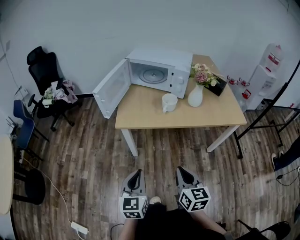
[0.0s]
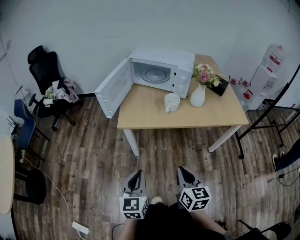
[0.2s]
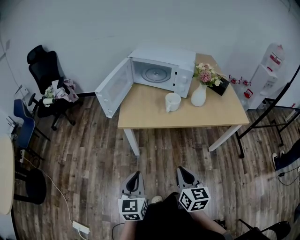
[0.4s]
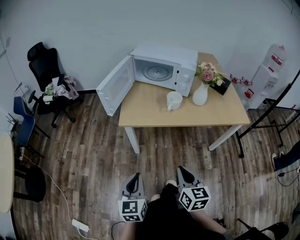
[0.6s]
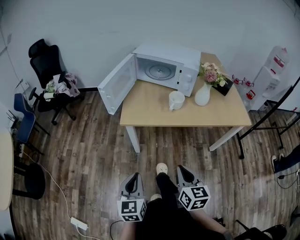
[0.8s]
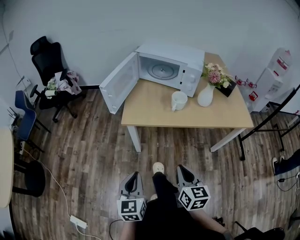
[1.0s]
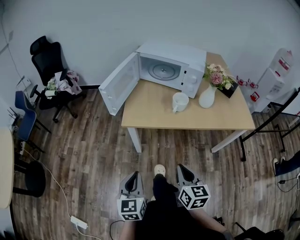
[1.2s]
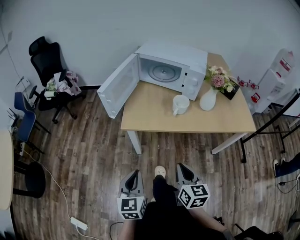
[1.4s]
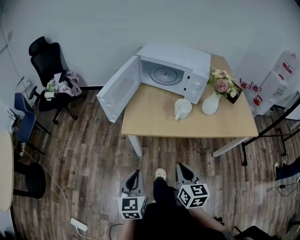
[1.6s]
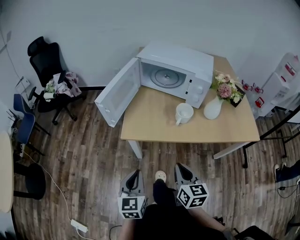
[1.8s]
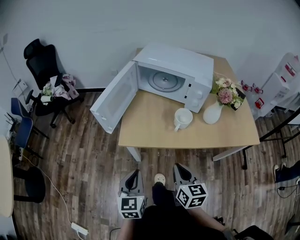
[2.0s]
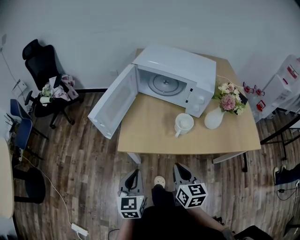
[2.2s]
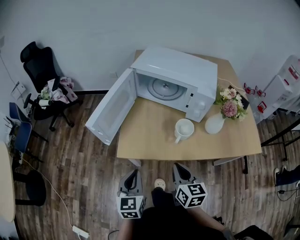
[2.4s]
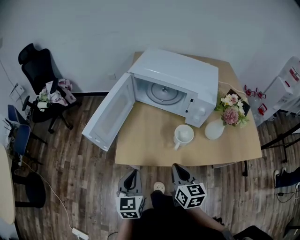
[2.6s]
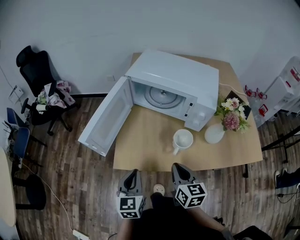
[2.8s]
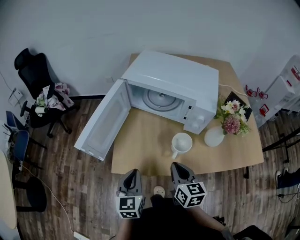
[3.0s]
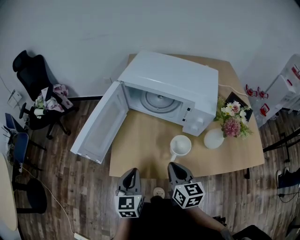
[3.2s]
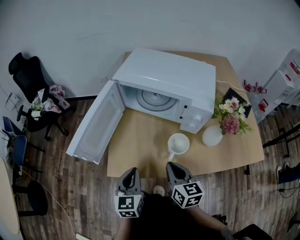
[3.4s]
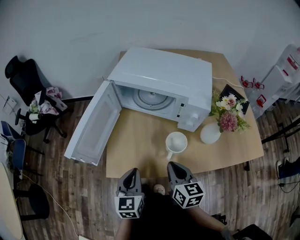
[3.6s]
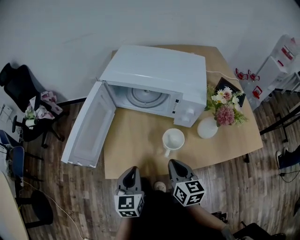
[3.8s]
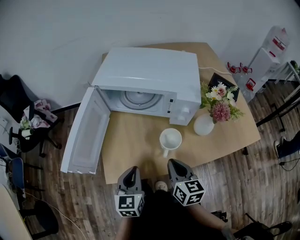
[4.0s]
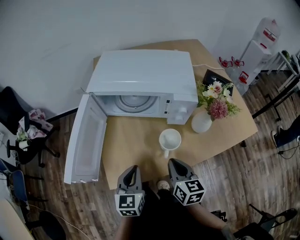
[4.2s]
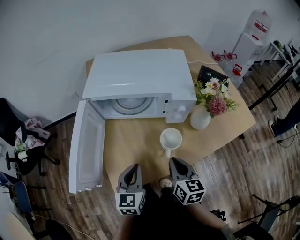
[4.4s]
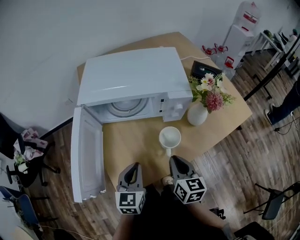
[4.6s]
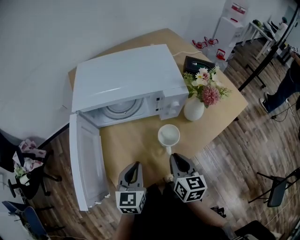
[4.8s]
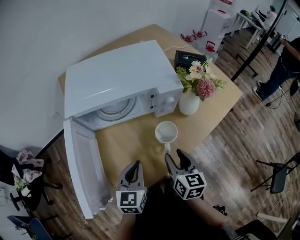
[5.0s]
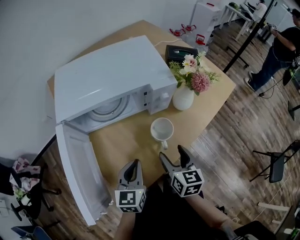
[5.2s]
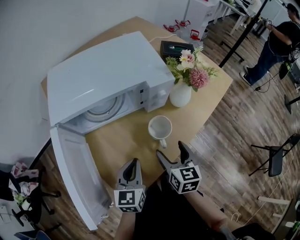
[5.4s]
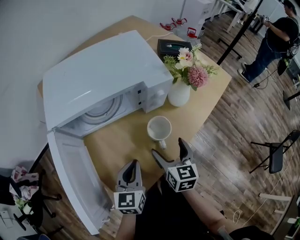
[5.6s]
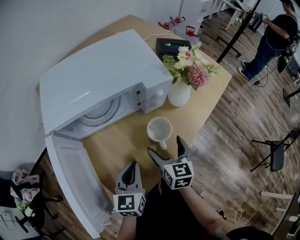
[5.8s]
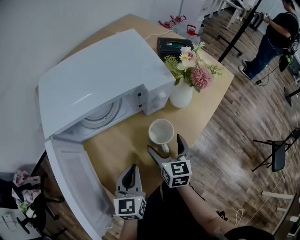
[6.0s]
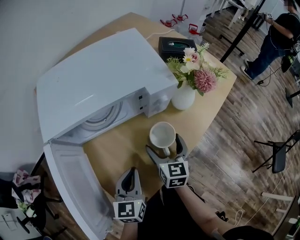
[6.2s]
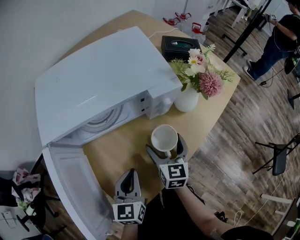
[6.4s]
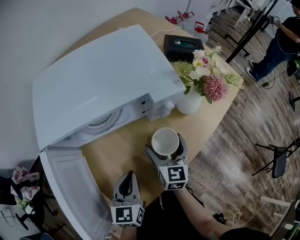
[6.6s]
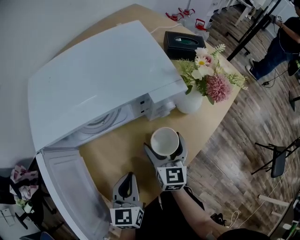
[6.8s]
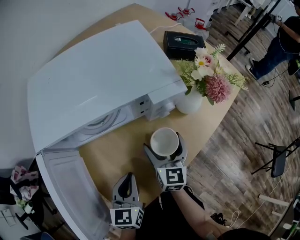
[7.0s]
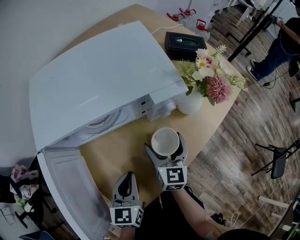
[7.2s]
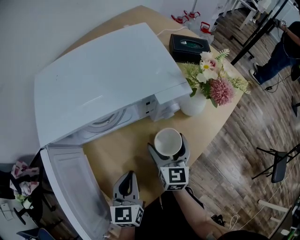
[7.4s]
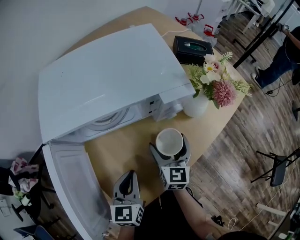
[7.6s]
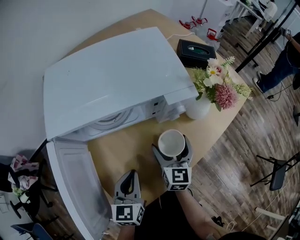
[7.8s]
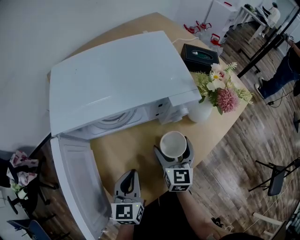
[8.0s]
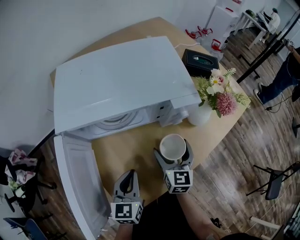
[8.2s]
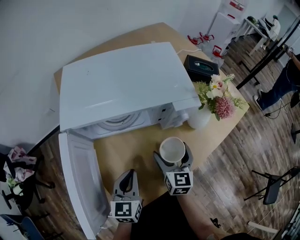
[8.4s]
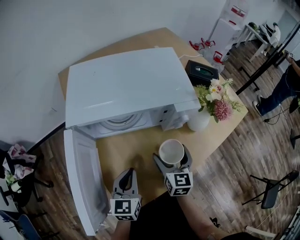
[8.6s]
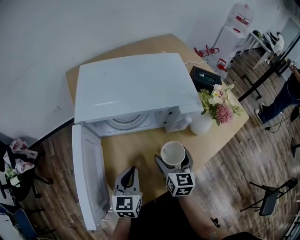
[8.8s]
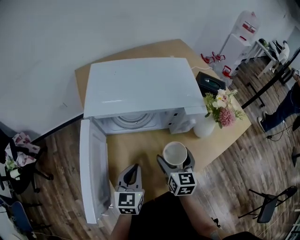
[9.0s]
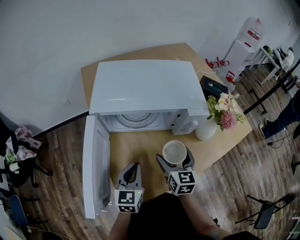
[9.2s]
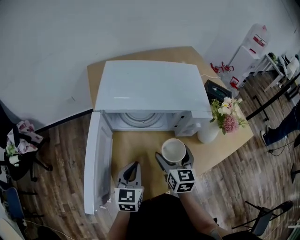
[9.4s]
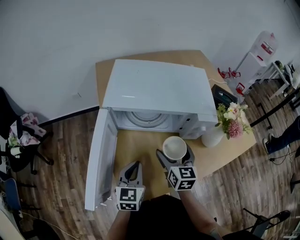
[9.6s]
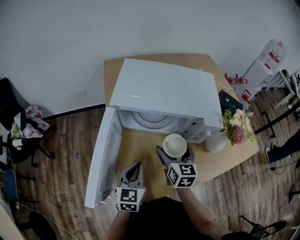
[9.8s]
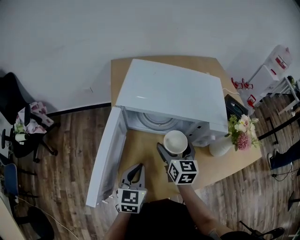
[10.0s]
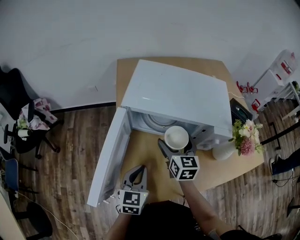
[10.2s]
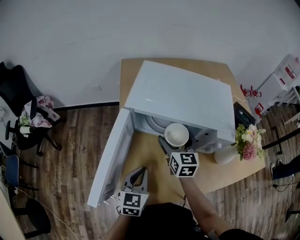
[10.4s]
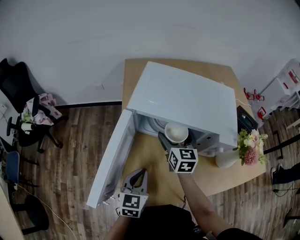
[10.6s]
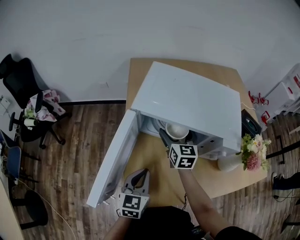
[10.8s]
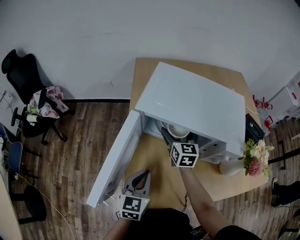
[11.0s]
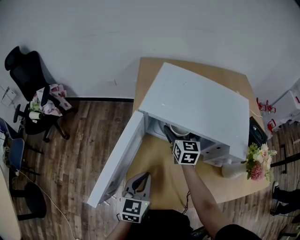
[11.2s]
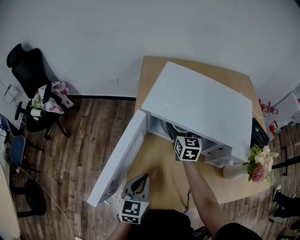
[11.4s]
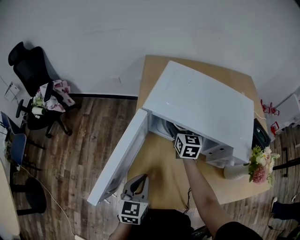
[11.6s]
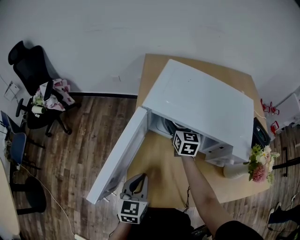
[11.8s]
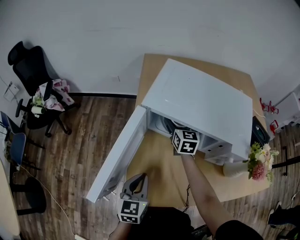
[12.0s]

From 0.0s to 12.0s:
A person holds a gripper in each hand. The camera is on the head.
From 0.0s to 1.6s: The grippers both shift forward by some 10 cm.
From 1.6s to 3.0s: Both grippers move forward, some 25 cm.
From 3.0s to 4.4s: The right gripper changes its angle by about 20 degrees. The left gripper shifts approximately 10 cm forward, and swivels approximately 30 degrees.
From 4.4s to 6.0s: The right gripper changes place by some 10 cm, changes its angle by about 30 degrees, and opens up; the left gripper moves about 5 cm, and turns by approximately 20 degrees.
From 6.0s to 7.6s: The right gripper goes roughly 5 cm forward.
From 7.6s to 9.0s: The right gripper travels upward by about 5 cm. Meanwhile the left gripper moves roughly 5 cm.
From 9.0s to 10.4s: The right gripper moves forward and to the left, about 15 cm, and turns by some 20 degrees.
From 10.4s to 12.0s: The right gripper is displaced forward by some 10 cm.

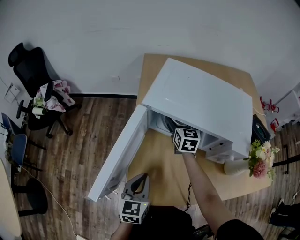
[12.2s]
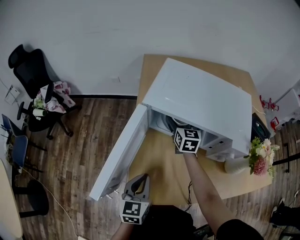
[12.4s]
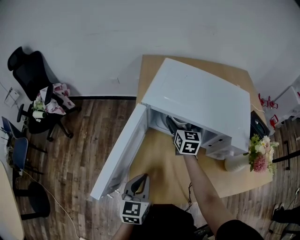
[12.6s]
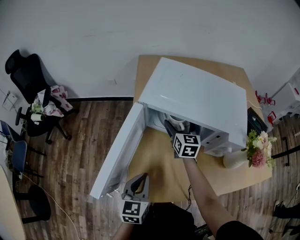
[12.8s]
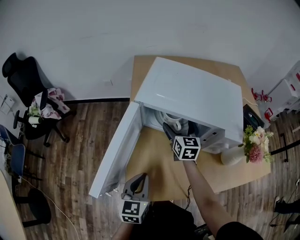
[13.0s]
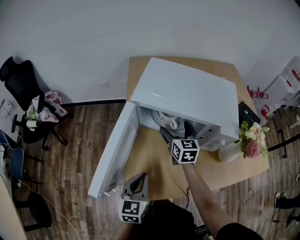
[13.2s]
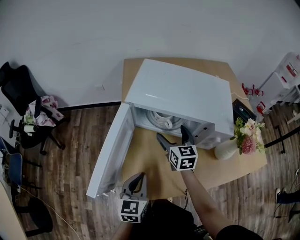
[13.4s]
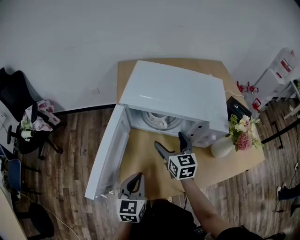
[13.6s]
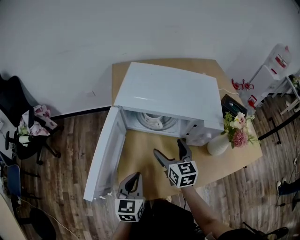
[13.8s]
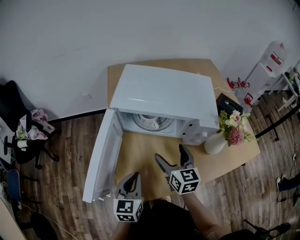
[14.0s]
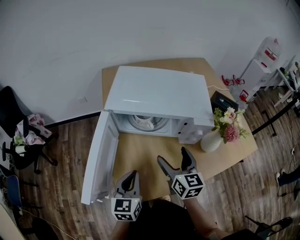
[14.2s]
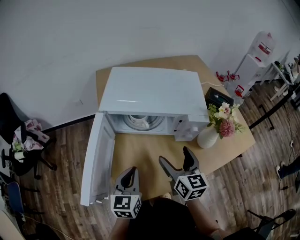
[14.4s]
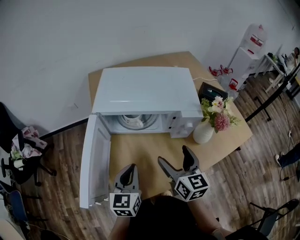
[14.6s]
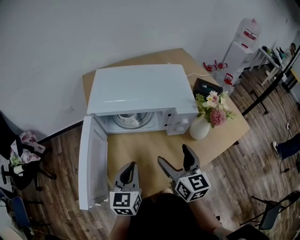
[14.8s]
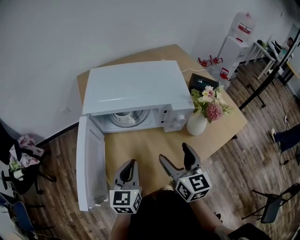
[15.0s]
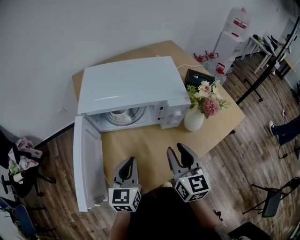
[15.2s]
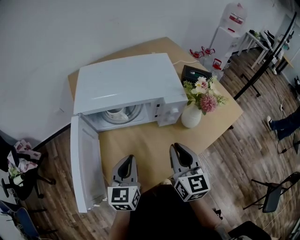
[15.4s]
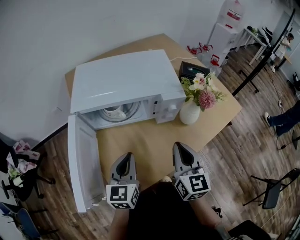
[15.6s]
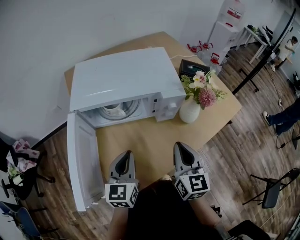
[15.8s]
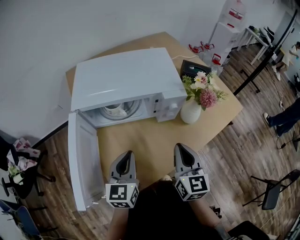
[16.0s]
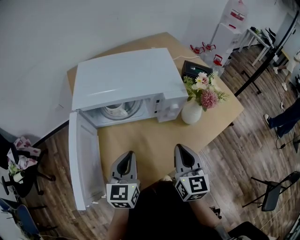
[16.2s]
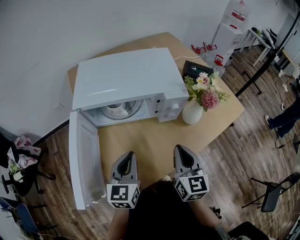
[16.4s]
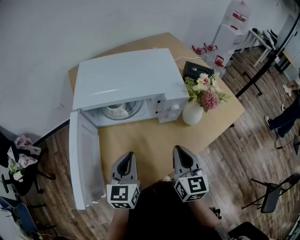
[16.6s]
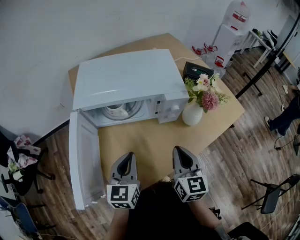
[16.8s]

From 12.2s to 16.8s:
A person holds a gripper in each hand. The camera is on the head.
From 12.2s to 13.8s: The right gripper shifts approximately 20 cm backward.
From 13.8s to 15.2s: The right gripper moves to the right, backward and upward, approximately 15 cm, changes its angle by about 20 degrees, and closes up, while the left gripper heads to the right, covering about 5 cm.
From 15.2s to 16.8s: The grippers move only a little.

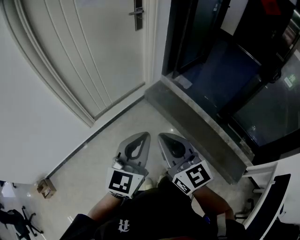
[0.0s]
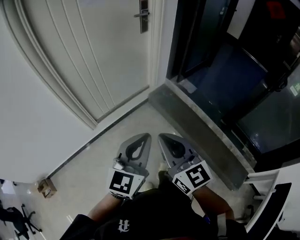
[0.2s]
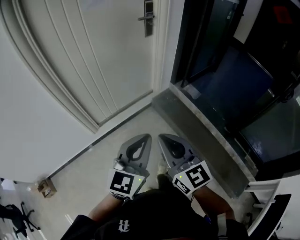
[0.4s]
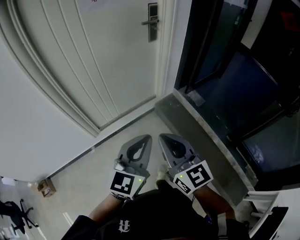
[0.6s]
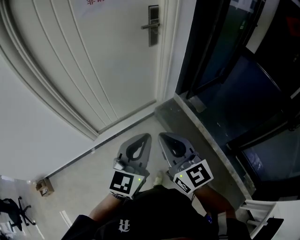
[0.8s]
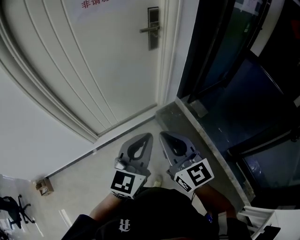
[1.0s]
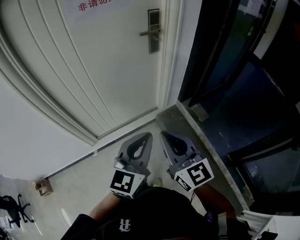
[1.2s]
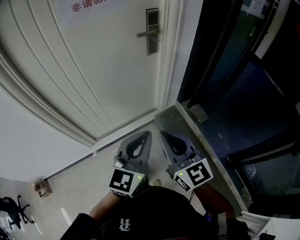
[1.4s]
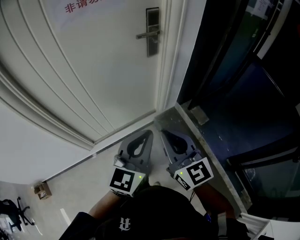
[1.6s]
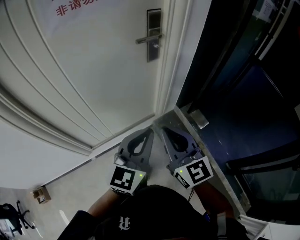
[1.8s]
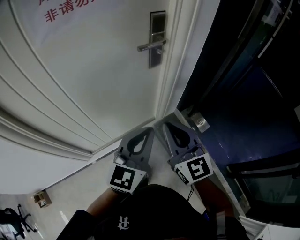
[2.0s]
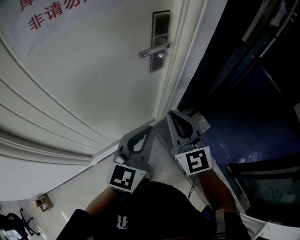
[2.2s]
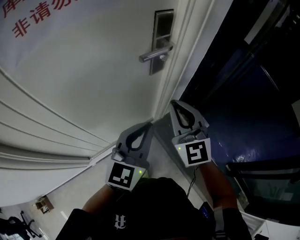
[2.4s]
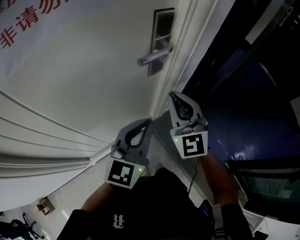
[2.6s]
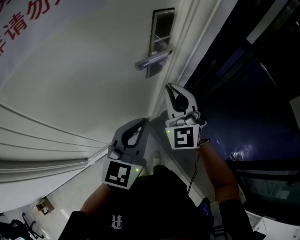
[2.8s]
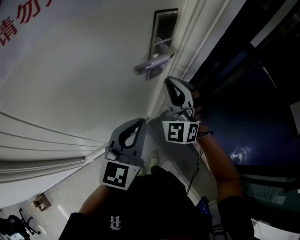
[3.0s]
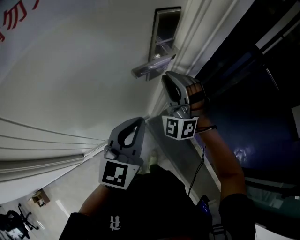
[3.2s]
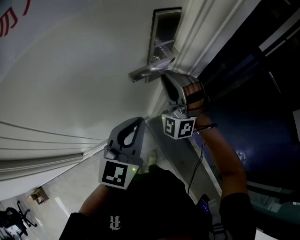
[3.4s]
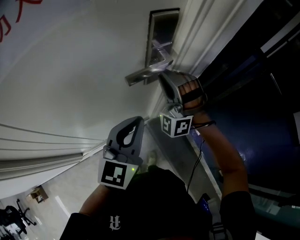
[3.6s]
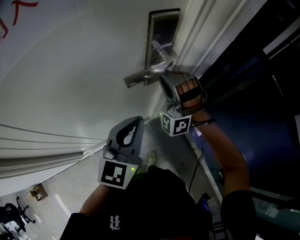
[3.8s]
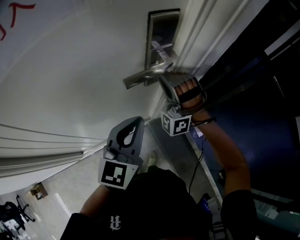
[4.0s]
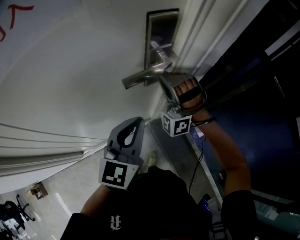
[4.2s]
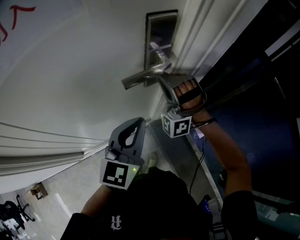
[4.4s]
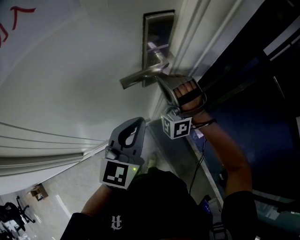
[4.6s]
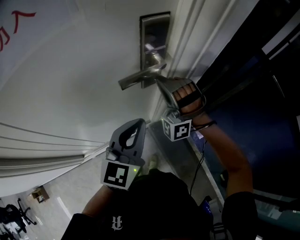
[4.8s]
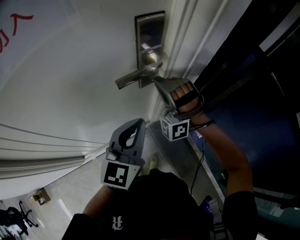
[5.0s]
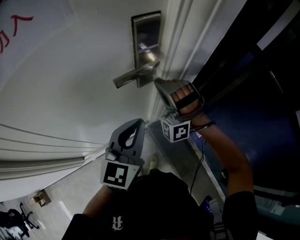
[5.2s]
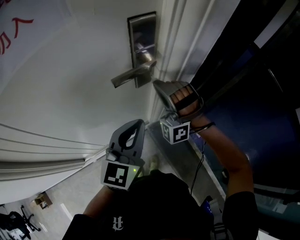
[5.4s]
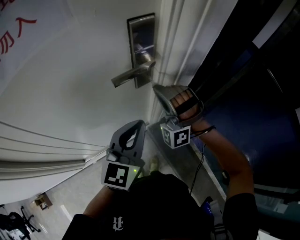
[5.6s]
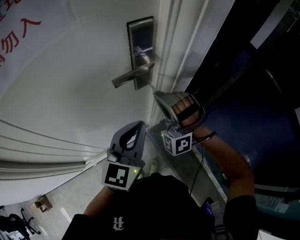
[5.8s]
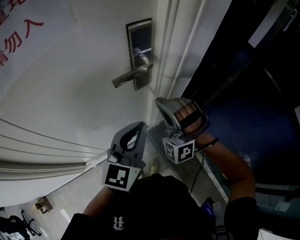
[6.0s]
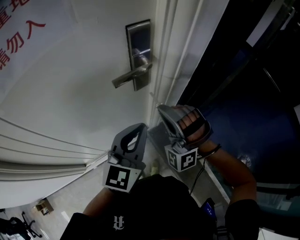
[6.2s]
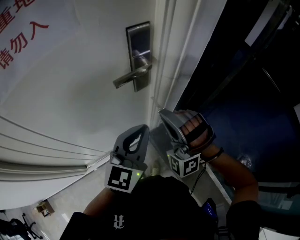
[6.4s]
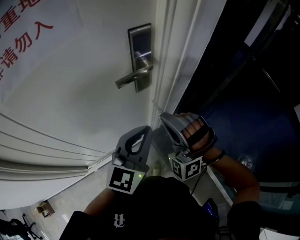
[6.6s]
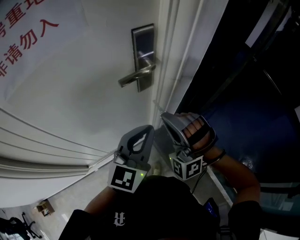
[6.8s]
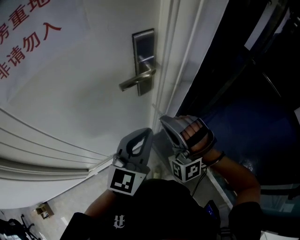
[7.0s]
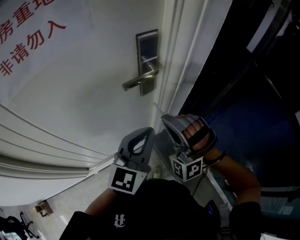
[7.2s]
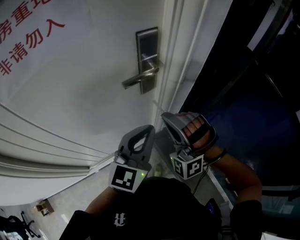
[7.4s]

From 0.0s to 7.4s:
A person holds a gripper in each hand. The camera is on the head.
From 0.0s to 1.4s: Both grippers move forward, about 30 cm.
From 1.4s to 3.0s: The two grippers go approximately 40 cm forward. The right gripper rolls counterclockwise, seen from behind, by approximately 60 degrees.
From 3.0s to 4.4s: The left gripper ends up approximately 5 cm from where it was. Meanwhile the right gripper shifts roughly 5 cm forward, and rotates about 30 degrees.
From 4.4s to 6.0s: The right gripper shifts about 10 cm backward; the left gripper ends up approximately 5 cm from where it was.
From 6.0s to 7.4s: The right gripper travels backward by some 5 cm.
